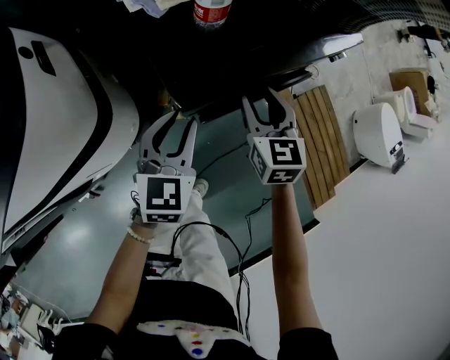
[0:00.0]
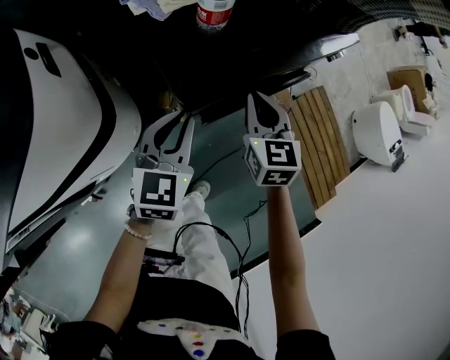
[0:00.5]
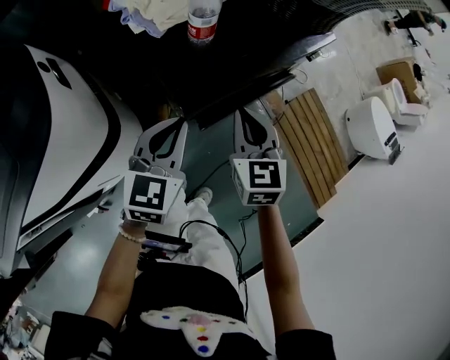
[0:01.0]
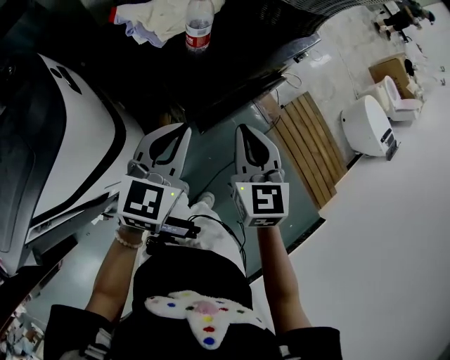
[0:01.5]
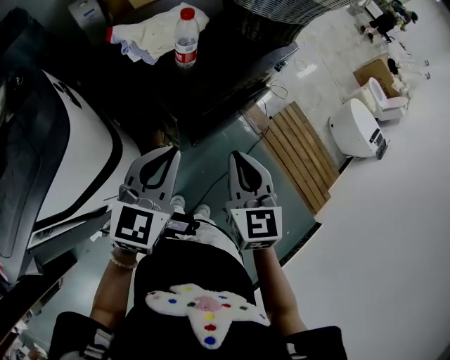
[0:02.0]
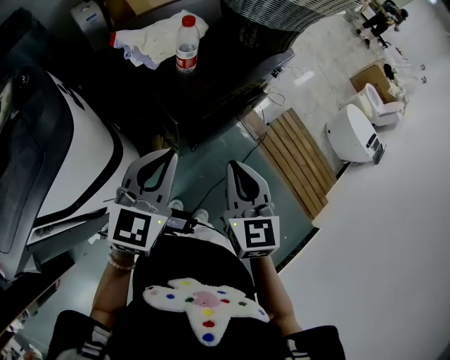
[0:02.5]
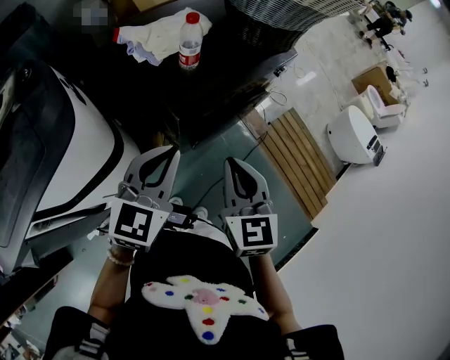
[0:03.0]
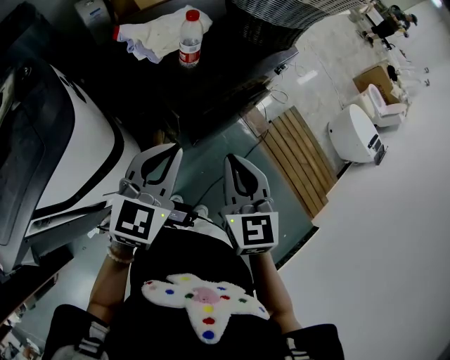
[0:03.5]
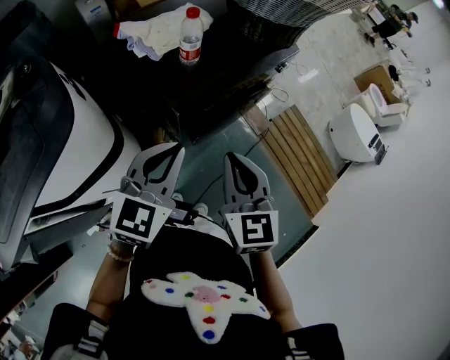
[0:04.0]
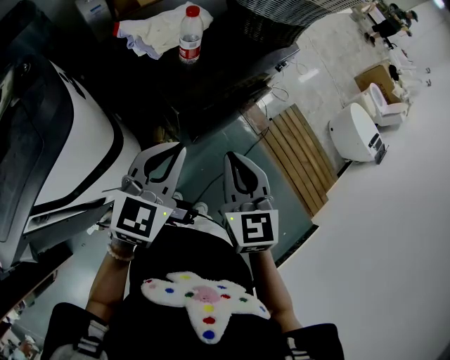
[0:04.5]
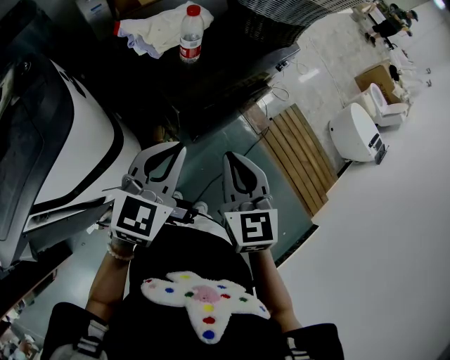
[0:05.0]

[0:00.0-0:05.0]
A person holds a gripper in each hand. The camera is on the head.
0:00.0 to 0:02.5: The right gripper heads backward and upward, covering some 25 cm, and closes up, while the left gripper is displaced upward and backward by about 20 cm, changes its angle by some 20 degrees, and closes up.
0:02.5 to 0:05.0: The grippers stay close to where they were, moving slightly.

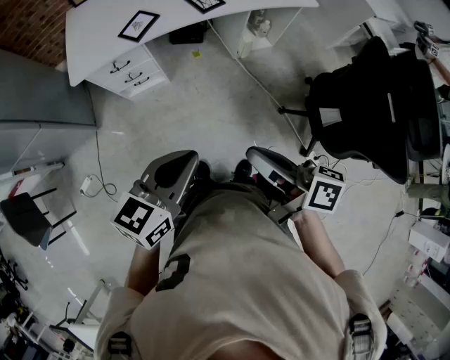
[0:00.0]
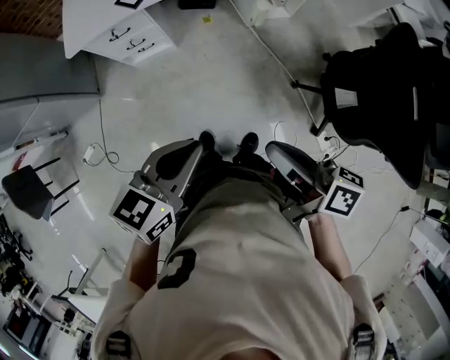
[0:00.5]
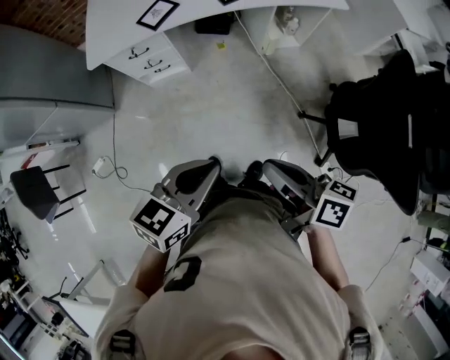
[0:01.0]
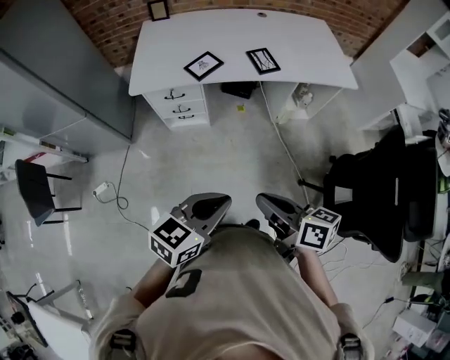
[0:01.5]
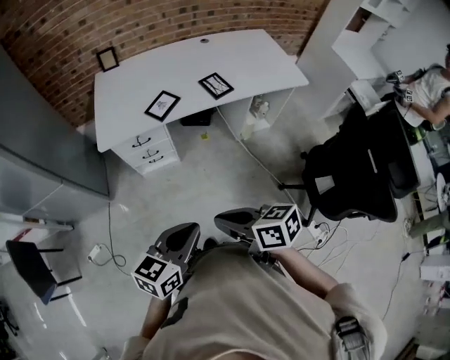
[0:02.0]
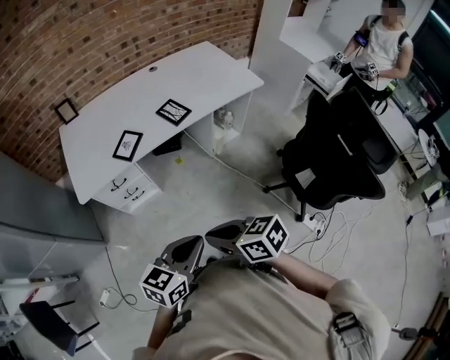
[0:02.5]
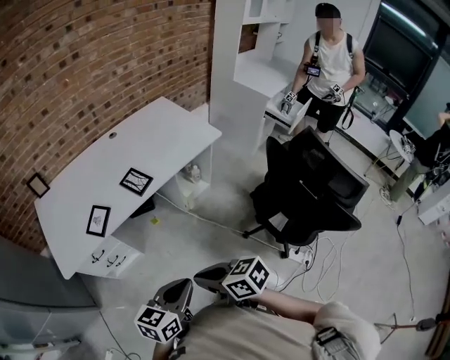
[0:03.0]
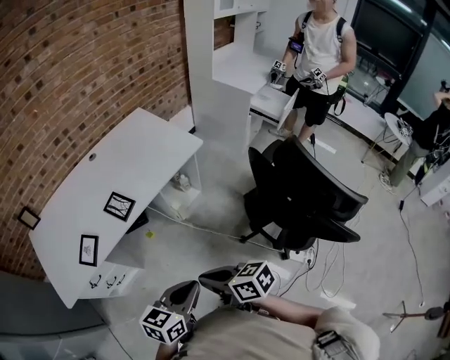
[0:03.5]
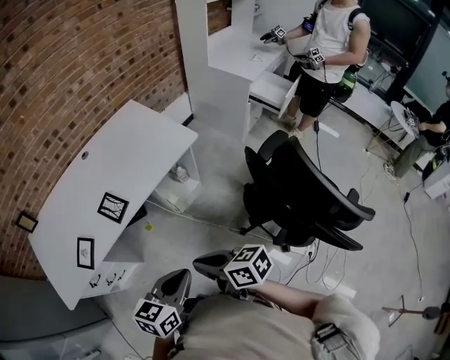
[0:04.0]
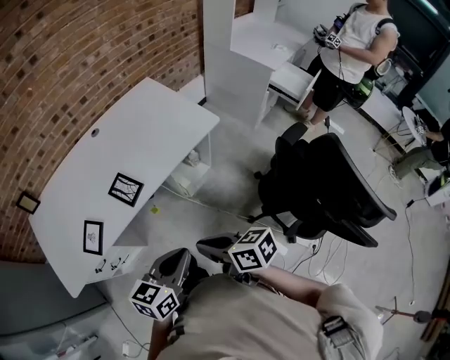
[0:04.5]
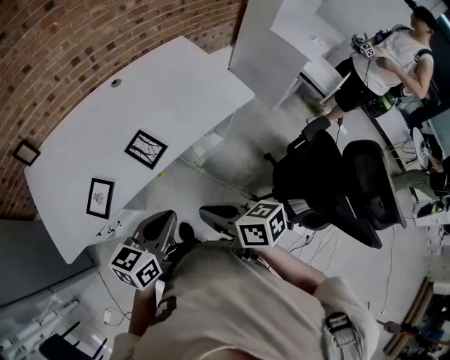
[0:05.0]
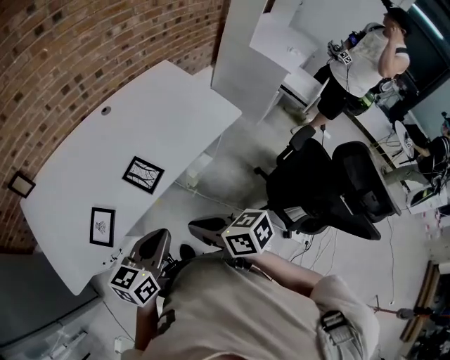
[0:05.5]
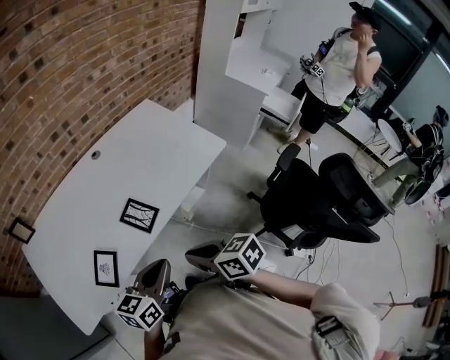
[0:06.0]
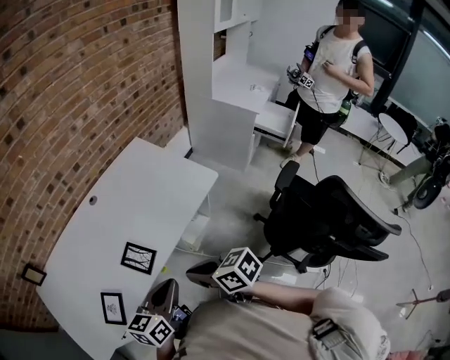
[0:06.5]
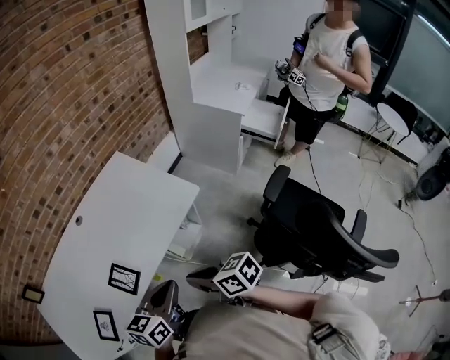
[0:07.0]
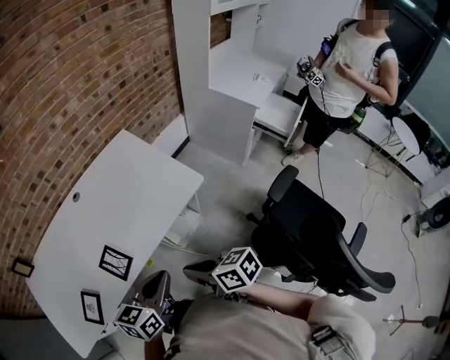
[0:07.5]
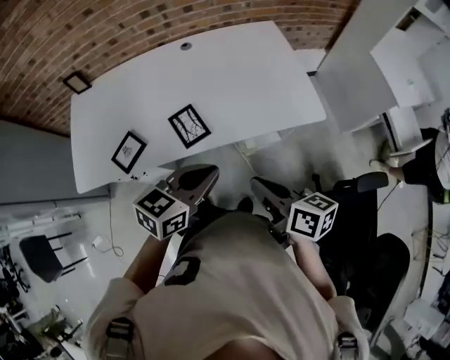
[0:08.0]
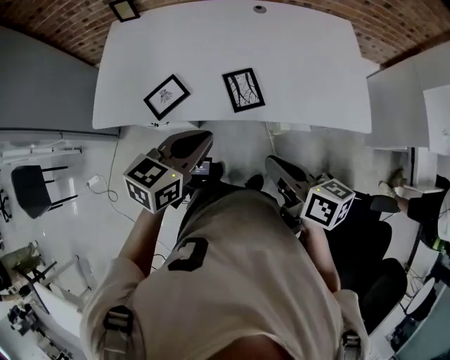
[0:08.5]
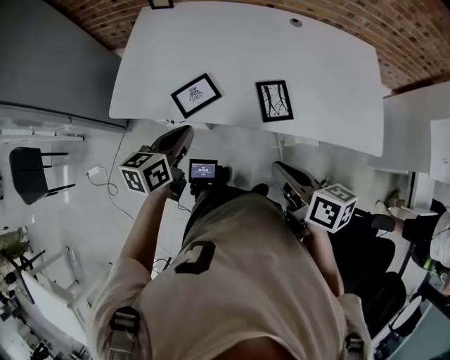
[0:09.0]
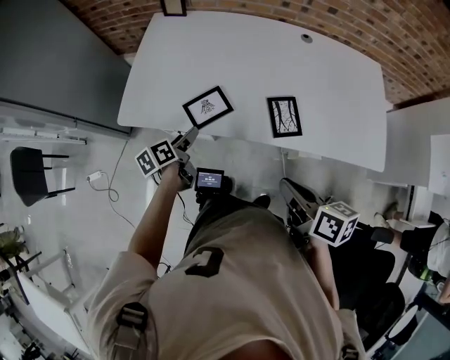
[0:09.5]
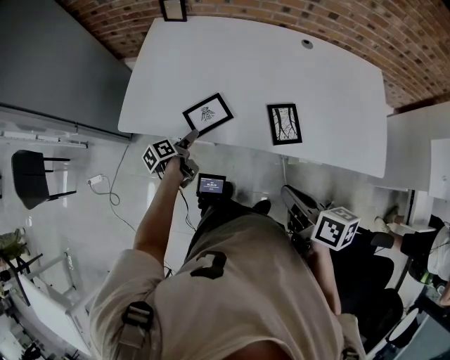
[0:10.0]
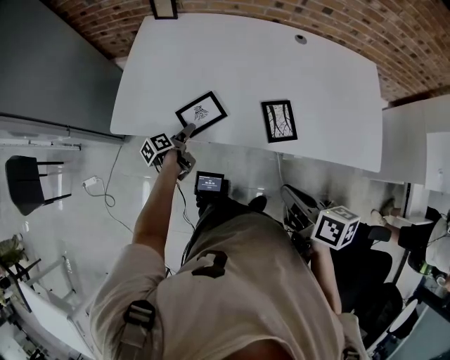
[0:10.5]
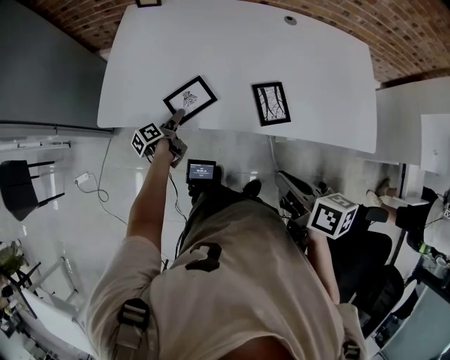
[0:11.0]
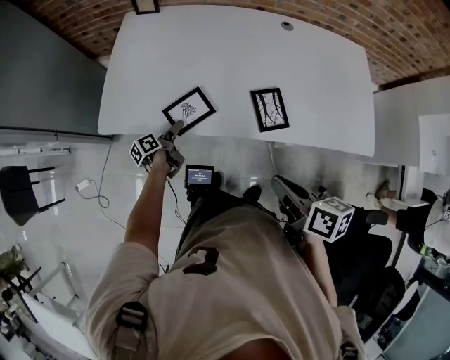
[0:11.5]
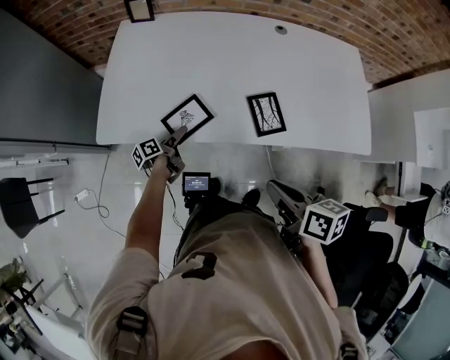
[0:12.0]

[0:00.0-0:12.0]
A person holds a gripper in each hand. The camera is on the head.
0:00.0 to 0:02.0: The left gripper shifts approximately 10 cm to the left; the right gripper shifts roughly 15 cm to the left, and swivels roughly 30 degrees.
0:02.0 to 0:04.0: The right gripper shifts by some 35 cm, and rotates some 30 degrees. The left gripper changes place by about 40 cm, and turns by approximately 20 degrees.
0:04.0 to 0:06.0: The two grippers go approximately 25 cm to the left and forward.
0:06.0 to 0:08.0: The two grippers go about 20 cm to the right and forward.
0:08.0 to 0:10.0: The left gripper ends up roughly 50 cm from where it was, rolls counterclockwise, seen from behind, by roughly 80 degrees, and opens its fingers, while the right gripper ends up approximately 25 cm from where it was, and swivels some 20 degrees.
0:10.0 to 0:12.0: The left gripper moves roughly 5 cm.

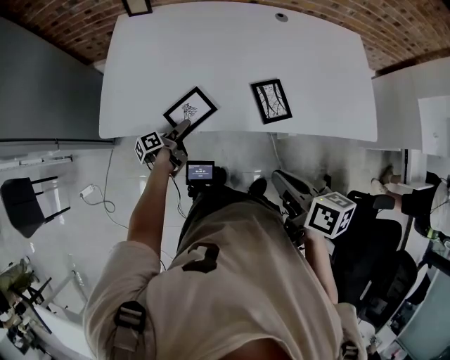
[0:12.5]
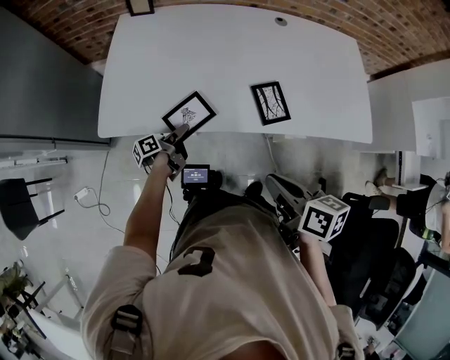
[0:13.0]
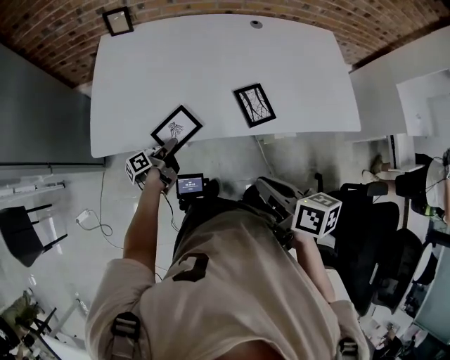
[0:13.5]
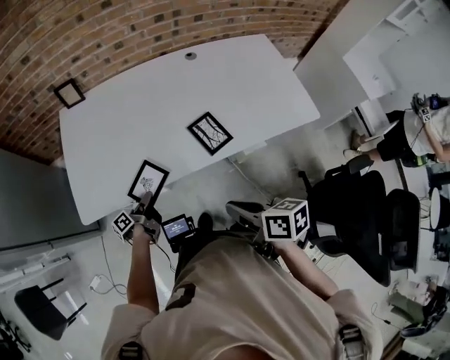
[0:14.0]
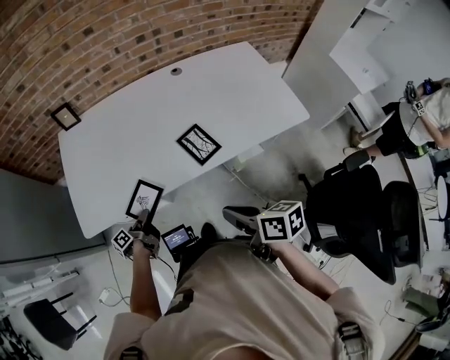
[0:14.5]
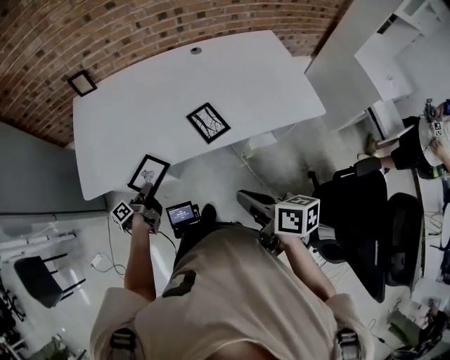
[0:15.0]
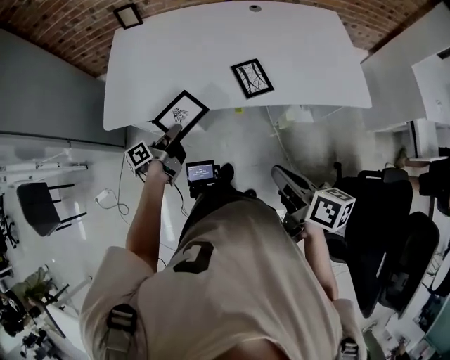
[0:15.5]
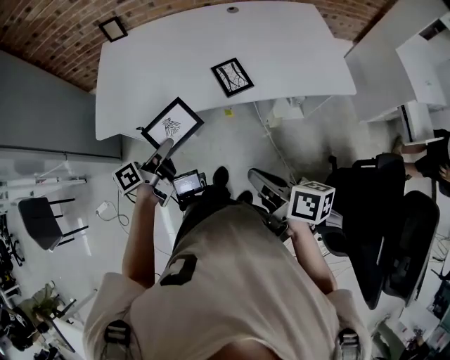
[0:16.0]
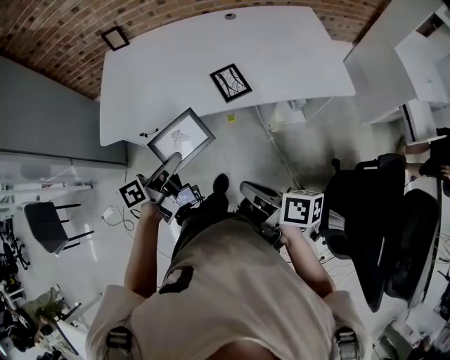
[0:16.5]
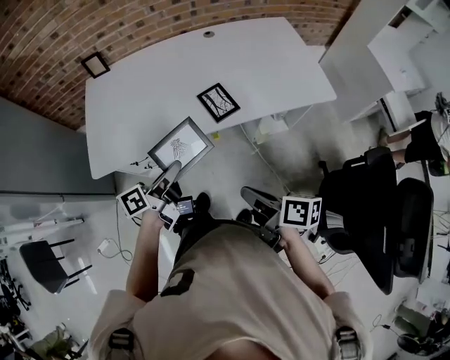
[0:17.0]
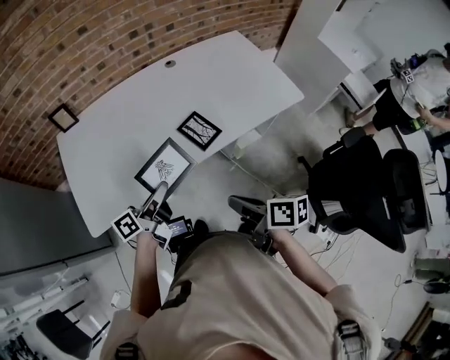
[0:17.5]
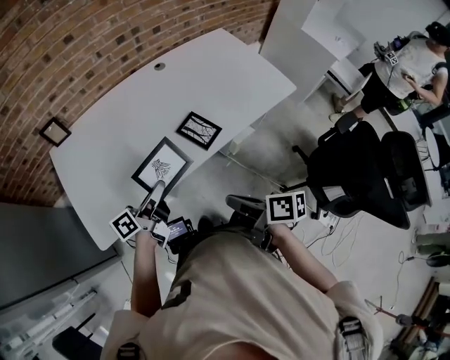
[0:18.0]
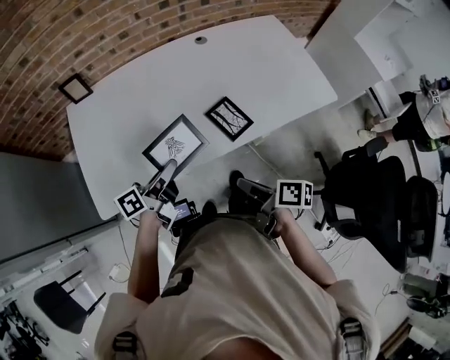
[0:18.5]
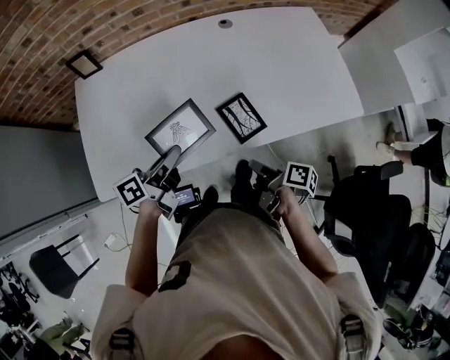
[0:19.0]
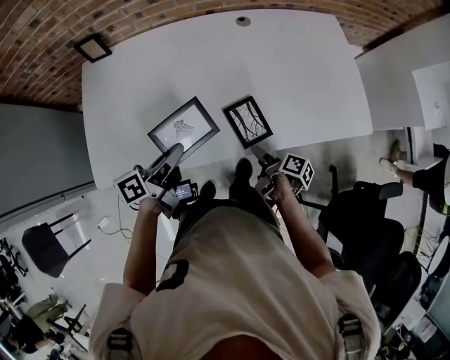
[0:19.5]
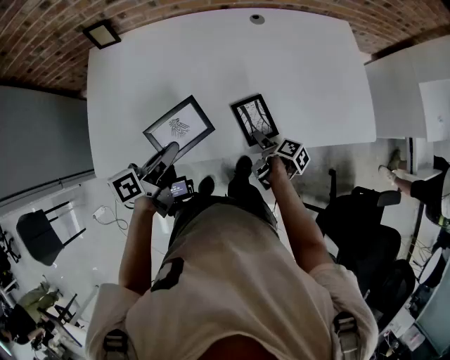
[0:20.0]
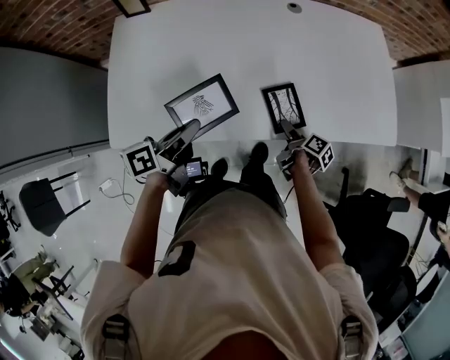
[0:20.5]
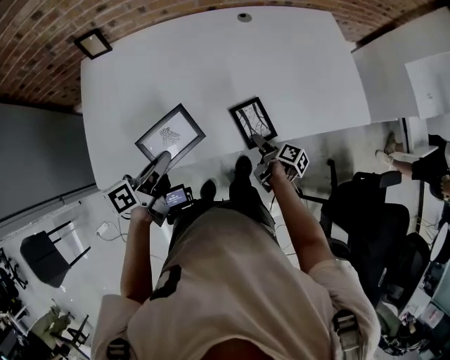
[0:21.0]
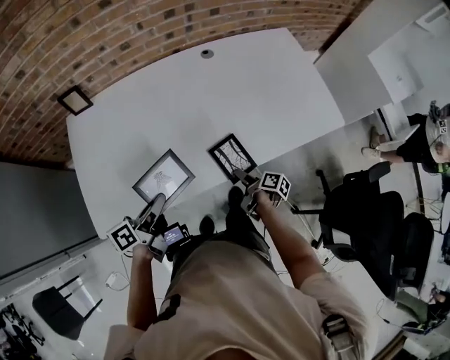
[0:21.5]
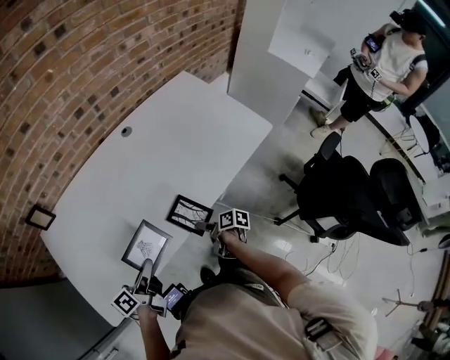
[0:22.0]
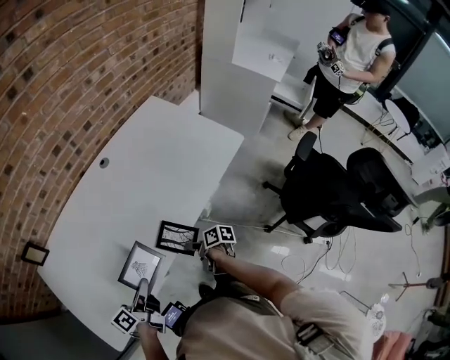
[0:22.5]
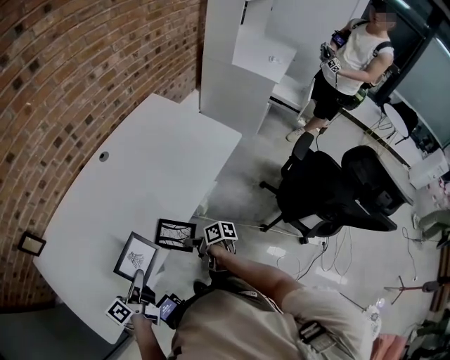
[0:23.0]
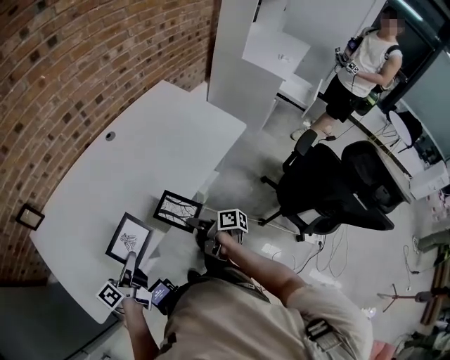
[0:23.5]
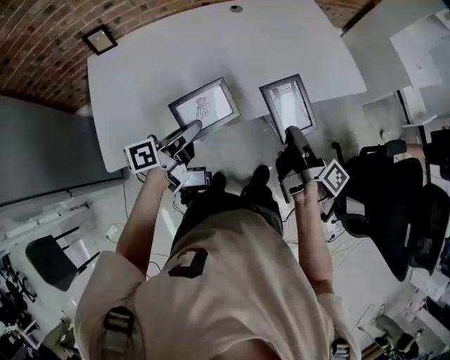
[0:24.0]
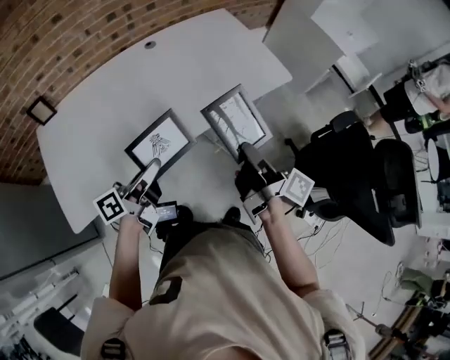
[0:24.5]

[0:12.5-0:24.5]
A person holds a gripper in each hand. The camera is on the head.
0:12.5 to 0:14.5: The left gripper shifts by approximately 5 cm, and closes.
0:14.5 to 0:16.5: The left gripper heads upward, backward and to the right, covering about 30 cm, and turns by about 30 degrees; the right gripper shifts about 15 cm backward.
0:16.5 to 0:18.5: The grippers both shift forward and to the left by roughly 20 cm. The right gripper changes its angle by approximately 20 degrees.
0:18.5 to 0:20.5: The right gripper is displaced downward, forward and to the right by some 30 cm, turns by roughly 20 degrees, and opens.
0:20.5 to 0:22.5: The right gripper shifts about 10 cm backward, and closes its fingers. The left gripper goes approximately 5 cm to the right, and swivels approximately 20 degrees.
0:22.5 to 0:24.5: The right gripper moves upward, roughly 25 cm, and tilts its fingers some 40 degrees upward. The left gripper is displaced upward and backward by some 10 cm.
